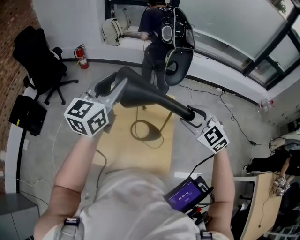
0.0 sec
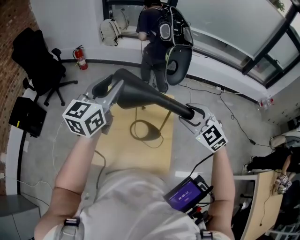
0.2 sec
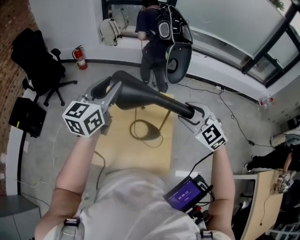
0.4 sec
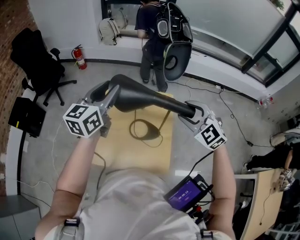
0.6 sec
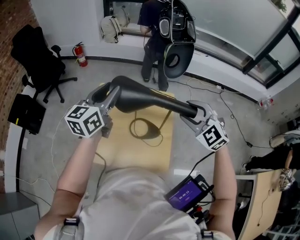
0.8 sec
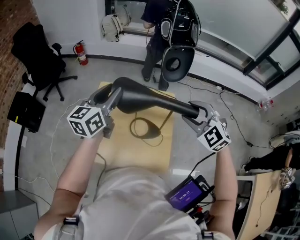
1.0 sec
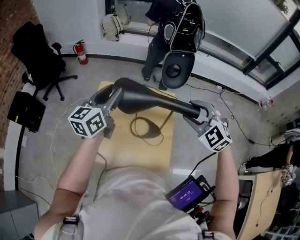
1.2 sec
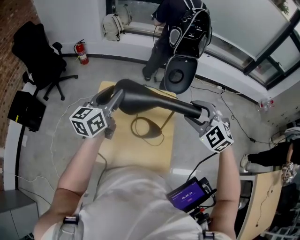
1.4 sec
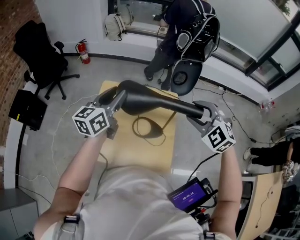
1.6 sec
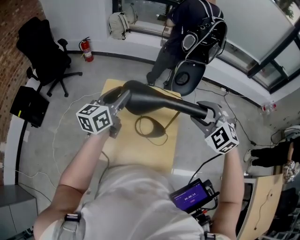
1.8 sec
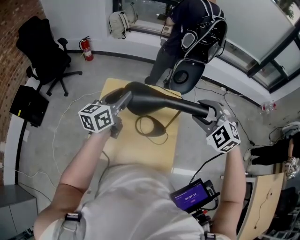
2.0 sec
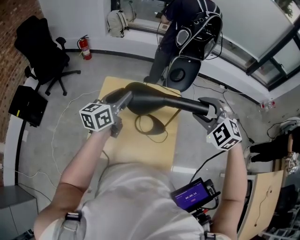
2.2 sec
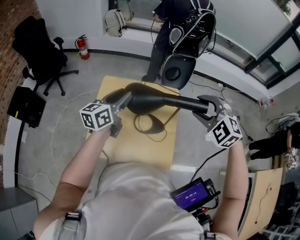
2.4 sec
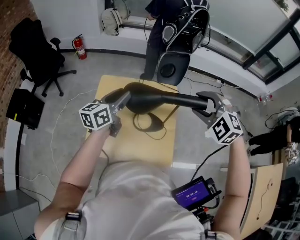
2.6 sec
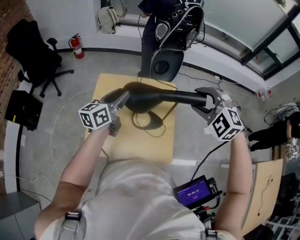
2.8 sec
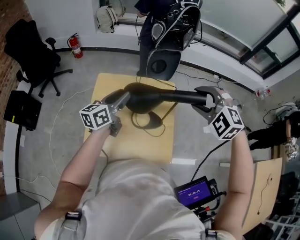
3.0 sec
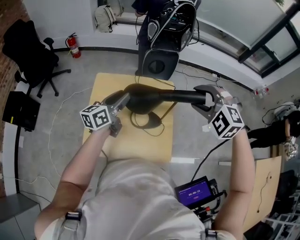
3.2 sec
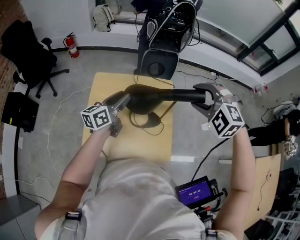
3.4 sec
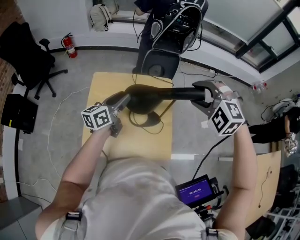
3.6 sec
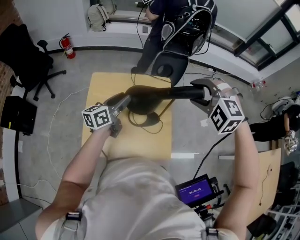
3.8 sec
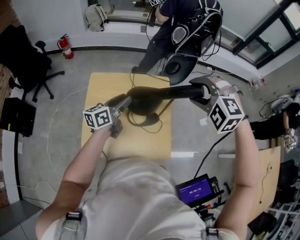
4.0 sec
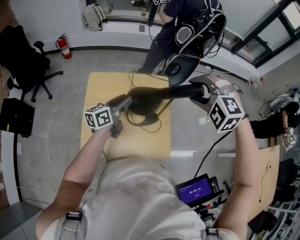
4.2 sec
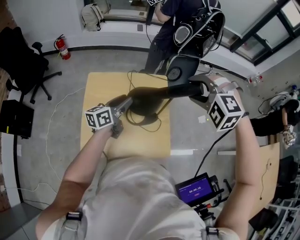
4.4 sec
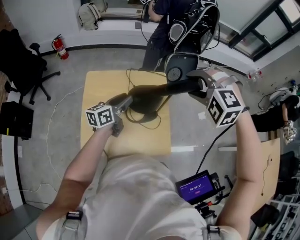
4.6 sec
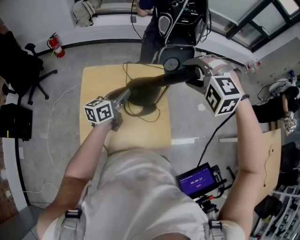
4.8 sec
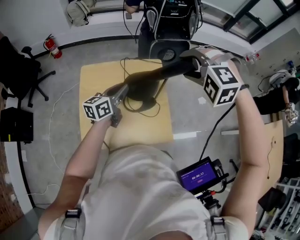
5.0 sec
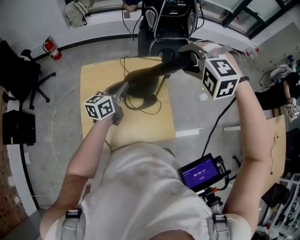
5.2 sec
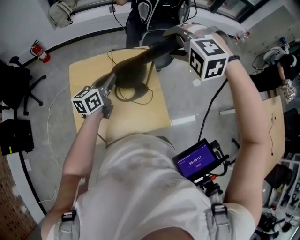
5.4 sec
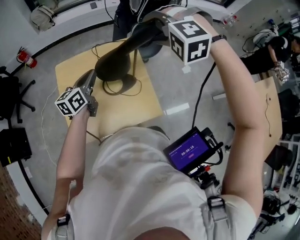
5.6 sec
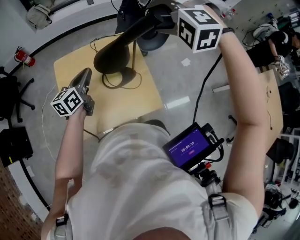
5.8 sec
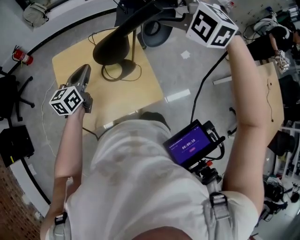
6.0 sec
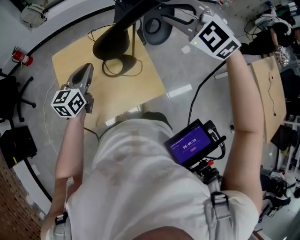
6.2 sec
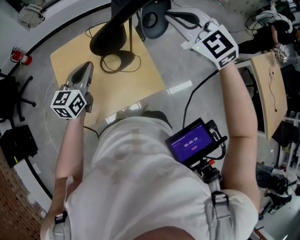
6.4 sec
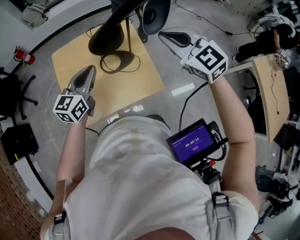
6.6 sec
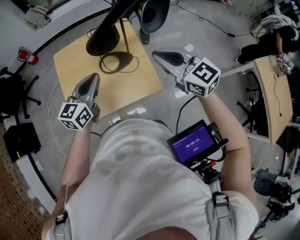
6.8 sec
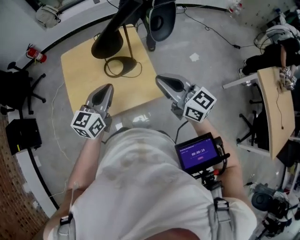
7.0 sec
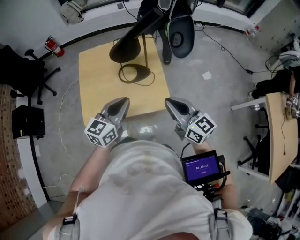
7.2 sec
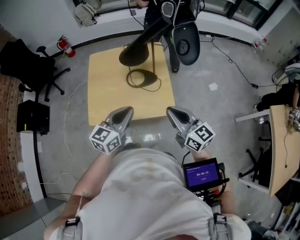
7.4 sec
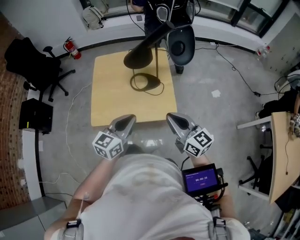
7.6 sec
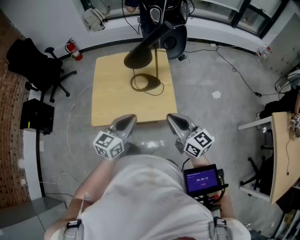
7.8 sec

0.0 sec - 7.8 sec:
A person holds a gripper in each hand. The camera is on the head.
0.0 sec - 1.6 sec: The left gripper is displaced downward by roughly 10 cm.
1.6 sec - 3.2 sec: The left gripper heads downward, covering roughly 10 cm.
3.2 sec - 4.6 sec: The left gripper heads downward, covering roughly 5 cm.
4.6 sec - 6.2 sec: The right gripper shifts by approximately 5 cm, changes its angle by roughly 40 degrees, and closes; the left gripper rotates about 20 degrees, and closes up.
6.2 sec - 7.8 sec: The left gripper travels backward by some 25 cm. Meanwhile the right gripper heads backward and downward, covering approximately 35 cm, twists about 60 degrees clockwise, seen from behind, and closes.

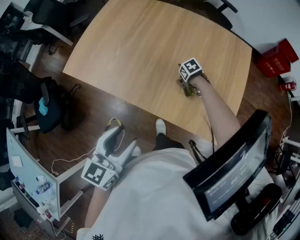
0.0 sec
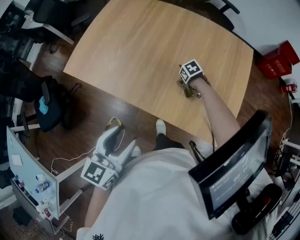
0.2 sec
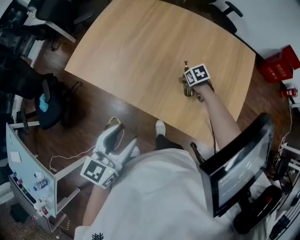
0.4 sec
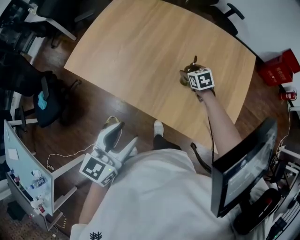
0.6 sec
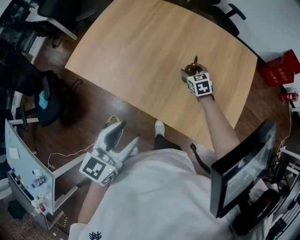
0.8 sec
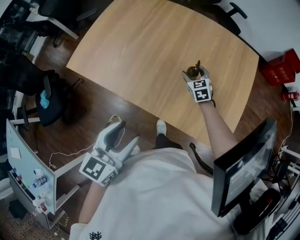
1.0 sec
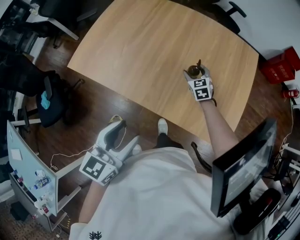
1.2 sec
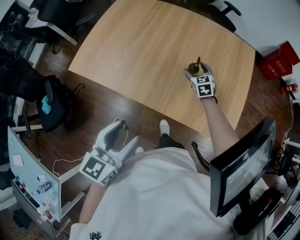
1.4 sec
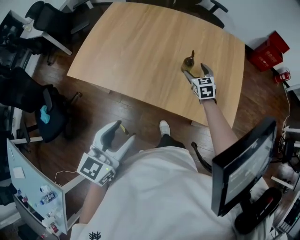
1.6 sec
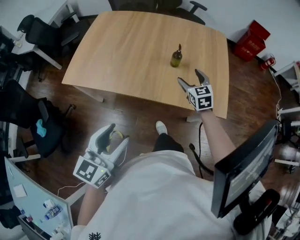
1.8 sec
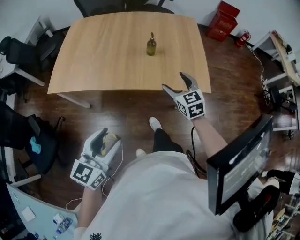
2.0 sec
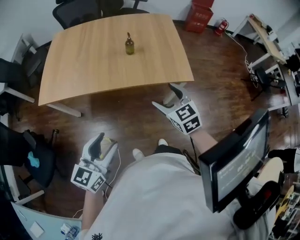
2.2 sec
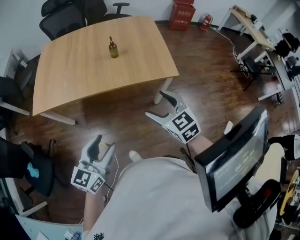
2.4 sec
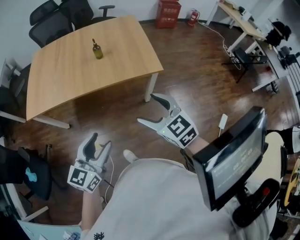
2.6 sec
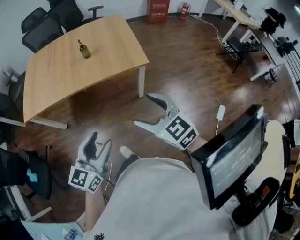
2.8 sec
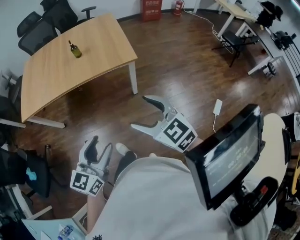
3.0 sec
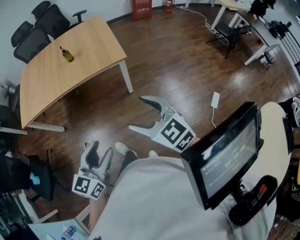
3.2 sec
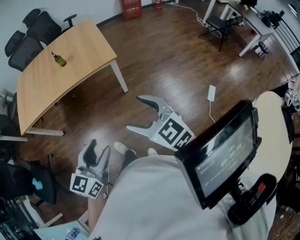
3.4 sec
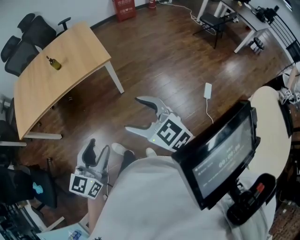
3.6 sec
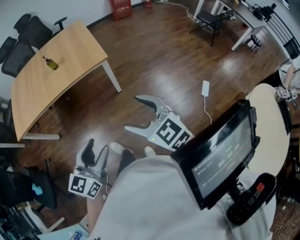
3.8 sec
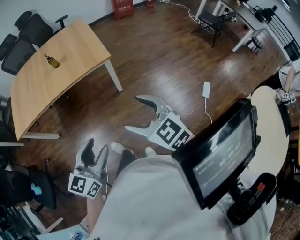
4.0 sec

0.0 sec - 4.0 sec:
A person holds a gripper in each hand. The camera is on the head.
0.0 sec - 1.4 sec: The right gripper goes some 10 cm upward, and angles its fingers upward, by some 40 degrees.
1.4 sec - 2.6 sec: The right gripper is displaced backward and upward by about 50 cm; the left gripper heads backward, covering about 20 cm, and turns by approximately 30 degrees.
2.6 sec - 4.0 sec: The right gripper shifts some 20 cm backward and to the right, while the left gripper moves to the right and backward, about 20 cm.

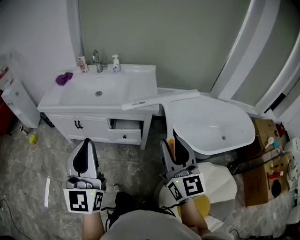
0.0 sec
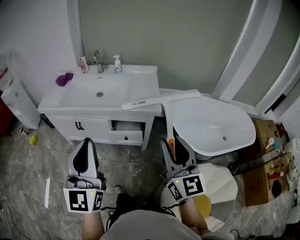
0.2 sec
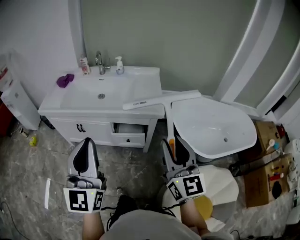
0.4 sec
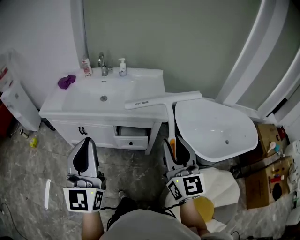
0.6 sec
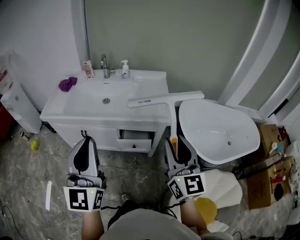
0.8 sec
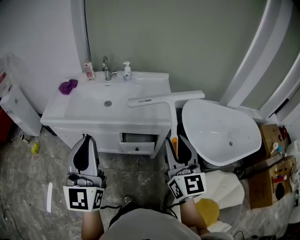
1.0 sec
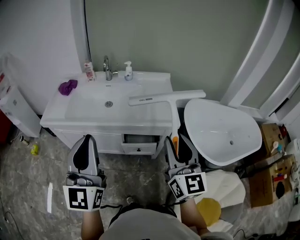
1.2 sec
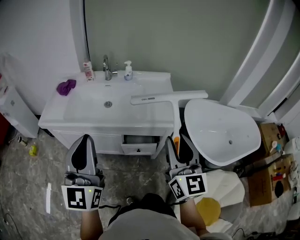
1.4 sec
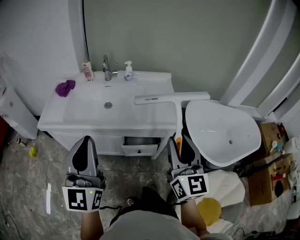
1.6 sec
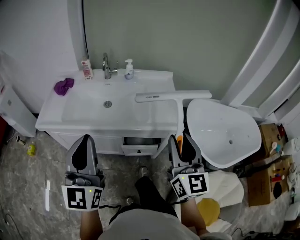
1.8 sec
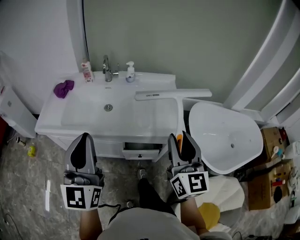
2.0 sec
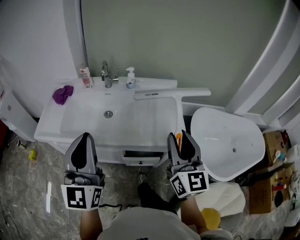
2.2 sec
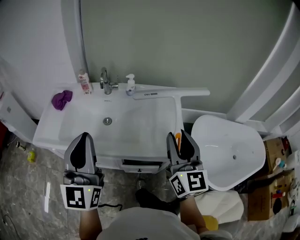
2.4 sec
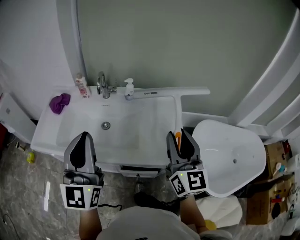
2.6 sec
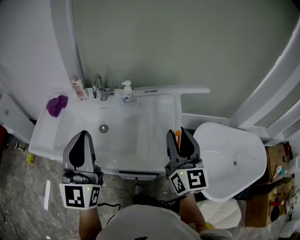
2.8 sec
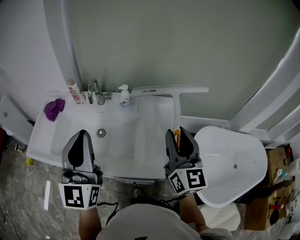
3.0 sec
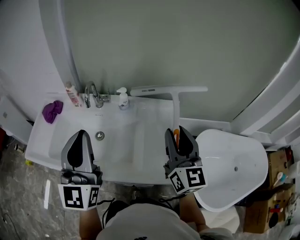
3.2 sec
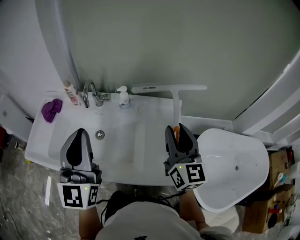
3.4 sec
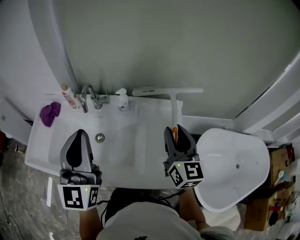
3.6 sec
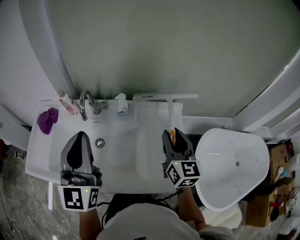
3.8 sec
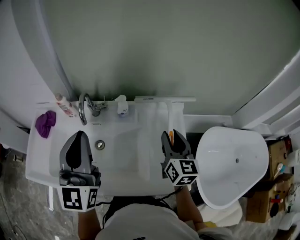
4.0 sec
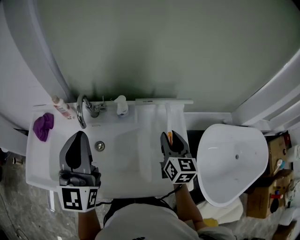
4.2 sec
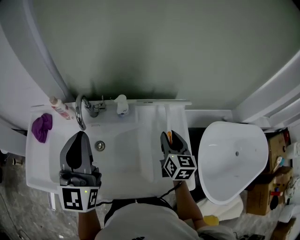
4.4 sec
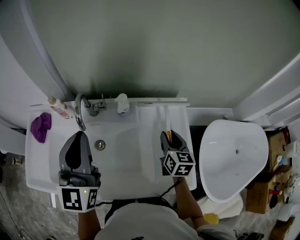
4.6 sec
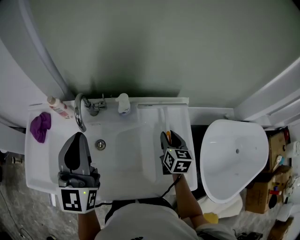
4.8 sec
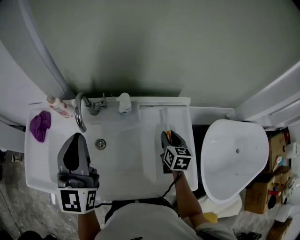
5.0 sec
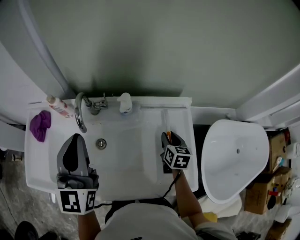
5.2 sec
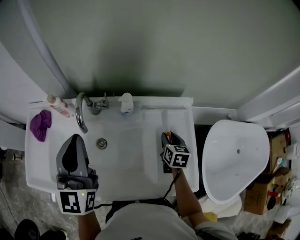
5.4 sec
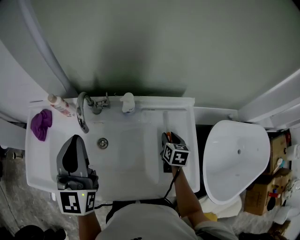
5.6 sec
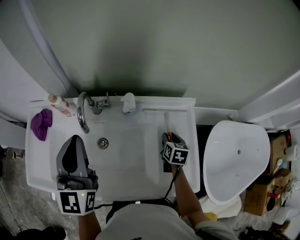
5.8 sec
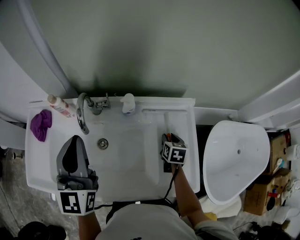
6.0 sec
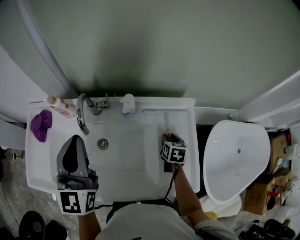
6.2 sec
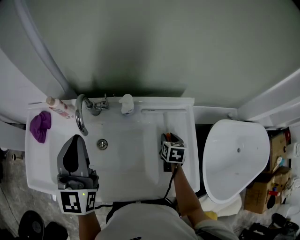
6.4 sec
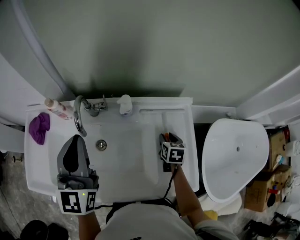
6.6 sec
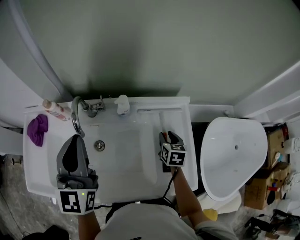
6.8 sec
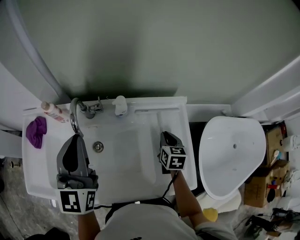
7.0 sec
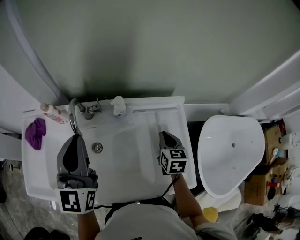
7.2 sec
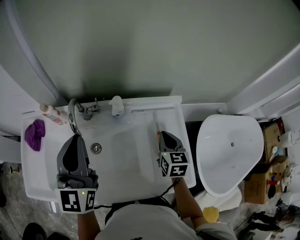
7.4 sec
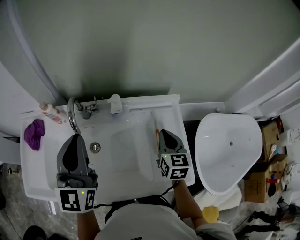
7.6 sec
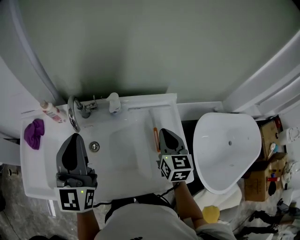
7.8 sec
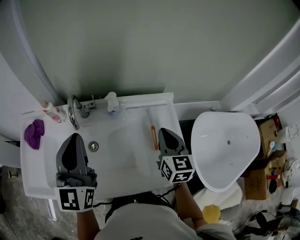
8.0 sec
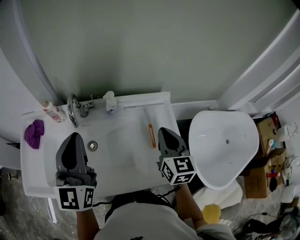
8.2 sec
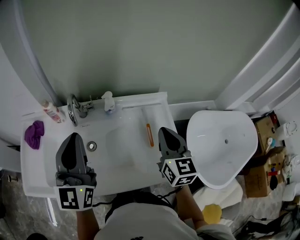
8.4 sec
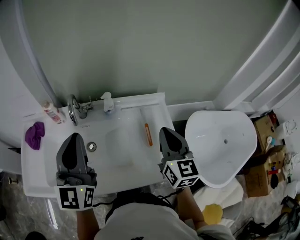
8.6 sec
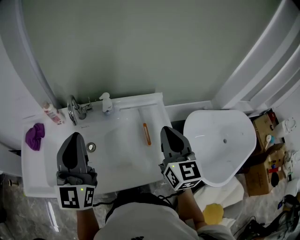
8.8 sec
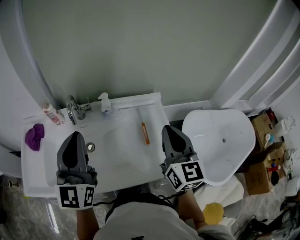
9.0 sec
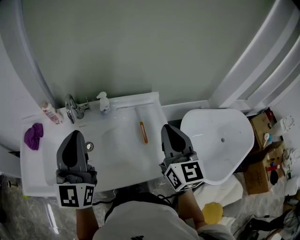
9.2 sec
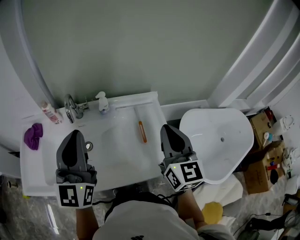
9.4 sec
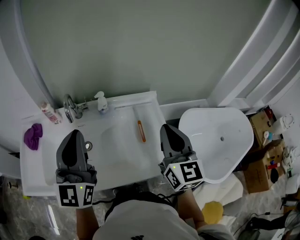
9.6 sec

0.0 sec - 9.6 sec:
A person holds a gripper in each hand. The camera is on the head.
0.0 sec - 1.6 sec: The grippers both shift forward and to the left by roughly 20 cm.
1.6 sec - 3.2 sec: Both grippers travel together forward, approximately 30 cm.
3.2 sec - 4.8 sec: The left gripper travels forward by approximately 15 cm. Meanwhile the right gripper heads downward and forward, covering roughly 30 cm, and points its fingers roughly 40 degrees further downward.
4.8 sec - 6.4 sec: The right gripper goes some 10 cm downward.
6.4 sec - 8.0 sec: The left gripper ends up approximately 5 cm from where it was. Meanwhile the right gripper travels upward by approximately 20 cm, angles its fingers upward, by approximately 30 degrees, and closes up.
8.0 sec - 9.6 sec: The left gripper heads backward, covering some 5 cm, while the right gripper moves upward and backward, roughly 15 cm.

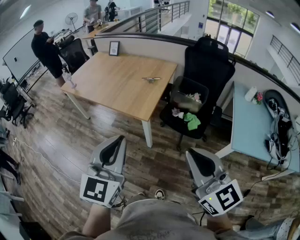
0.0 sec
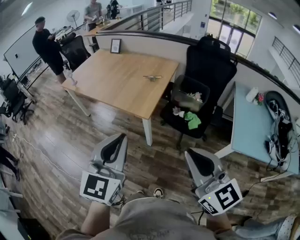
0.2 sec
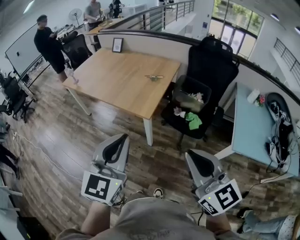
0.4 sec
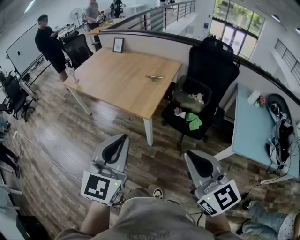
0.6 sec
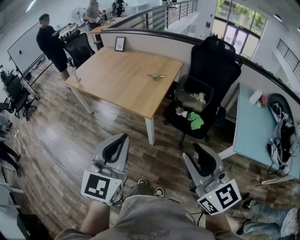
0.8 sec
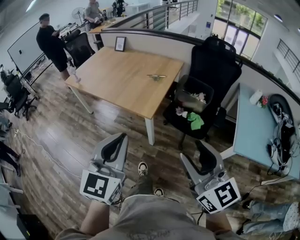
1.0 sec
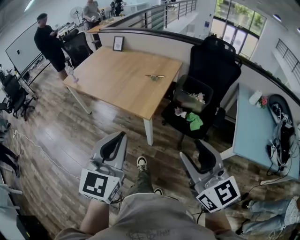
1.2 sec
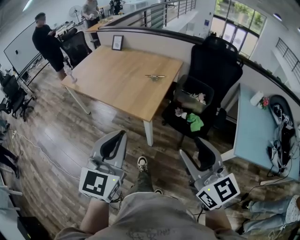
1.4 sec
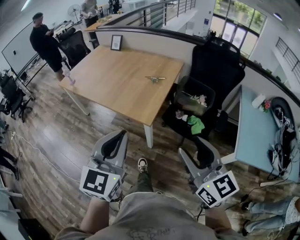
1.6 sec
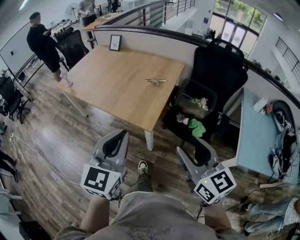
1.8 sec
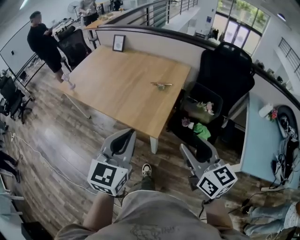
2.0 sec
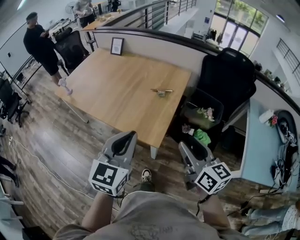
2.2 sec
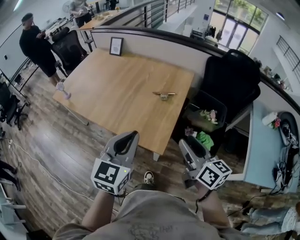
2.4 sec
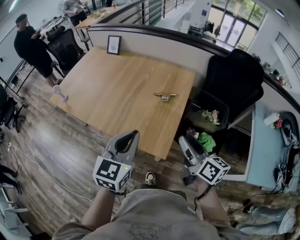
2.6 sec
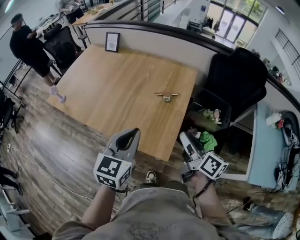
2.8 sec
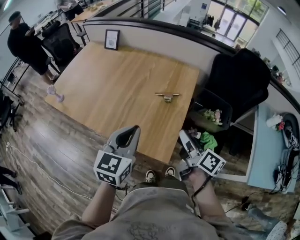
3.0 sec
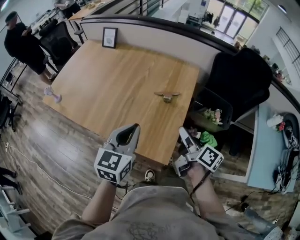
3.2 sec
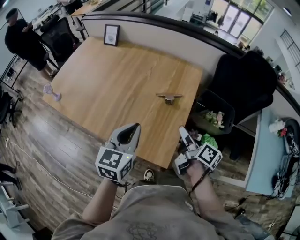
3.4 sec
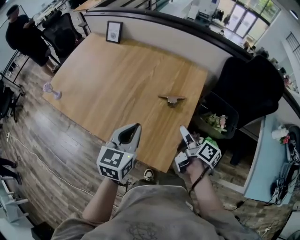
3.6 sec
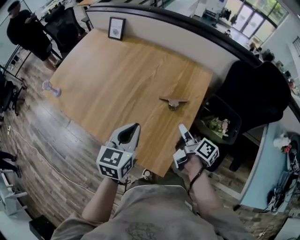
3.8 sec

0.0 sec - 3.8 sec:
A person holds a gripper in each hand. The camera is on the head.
0.0 sec - 1.2 sec: The right gripper opens up.
1.2 sec - 2.6 sec: Both grippers move forward, approximately 40 cm. The right gripper turns by about 40 degrees.
2.6 sec - 3.8 sec: The grippers both shift forward and downward by about 25 cm. The right gripper swivels approximately 40 degrees.
